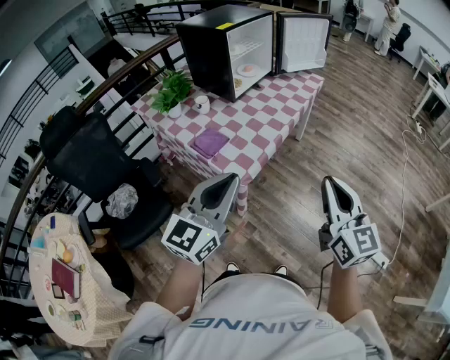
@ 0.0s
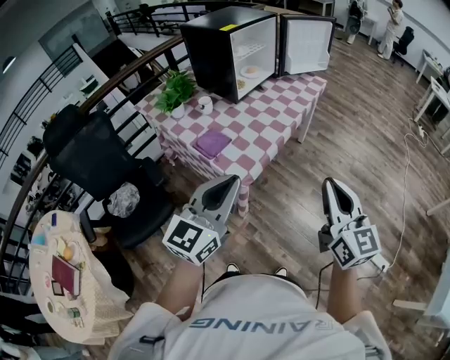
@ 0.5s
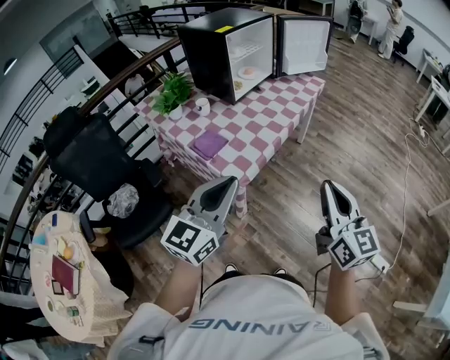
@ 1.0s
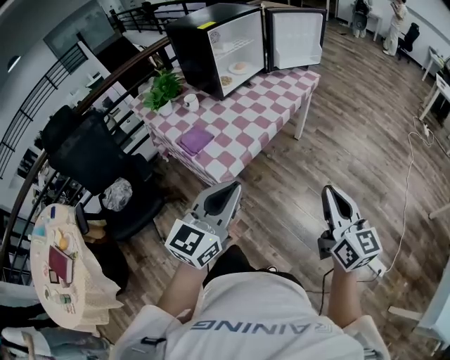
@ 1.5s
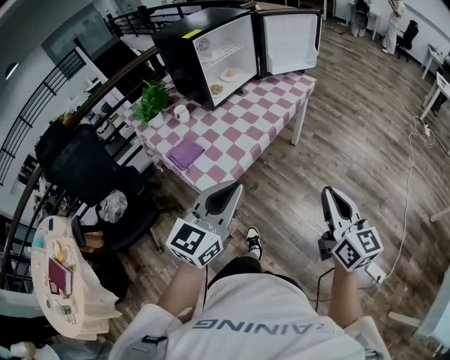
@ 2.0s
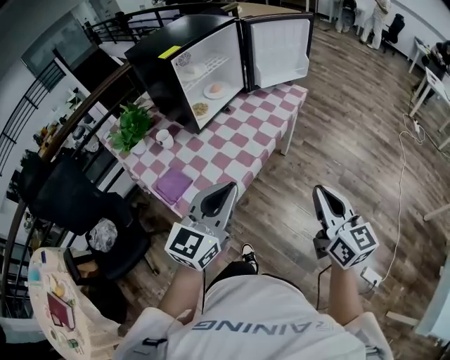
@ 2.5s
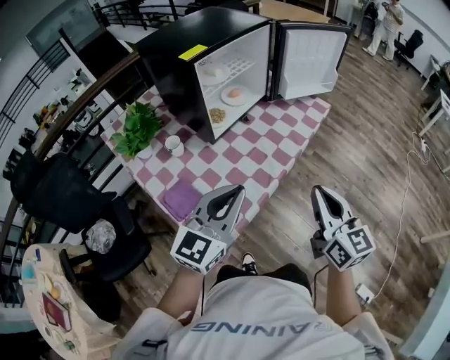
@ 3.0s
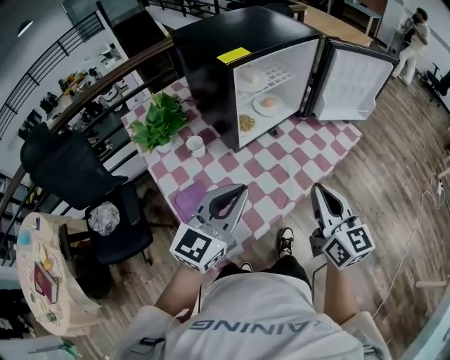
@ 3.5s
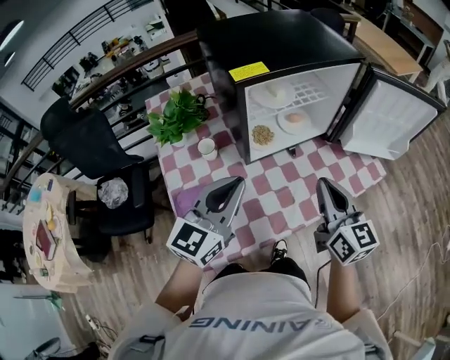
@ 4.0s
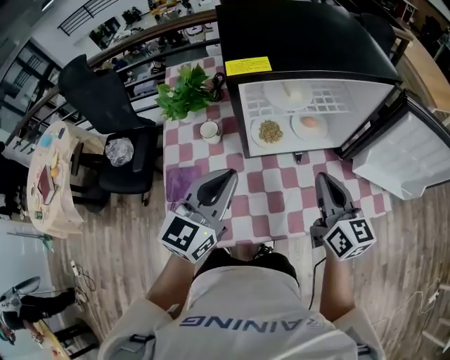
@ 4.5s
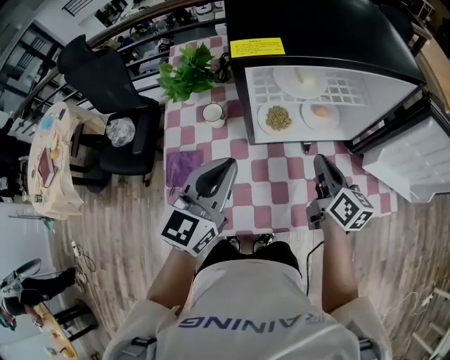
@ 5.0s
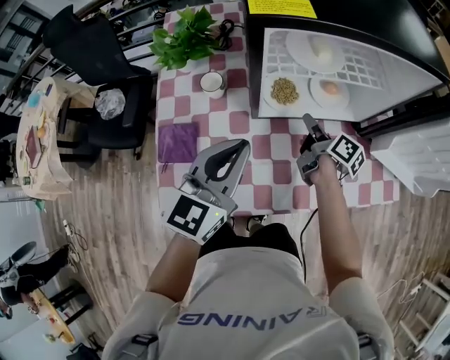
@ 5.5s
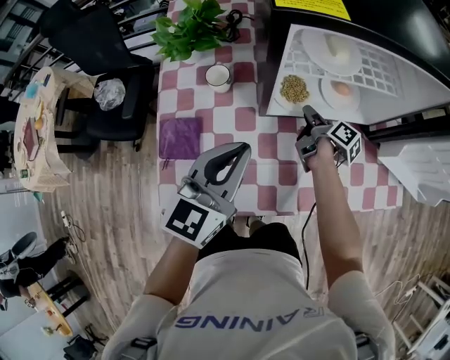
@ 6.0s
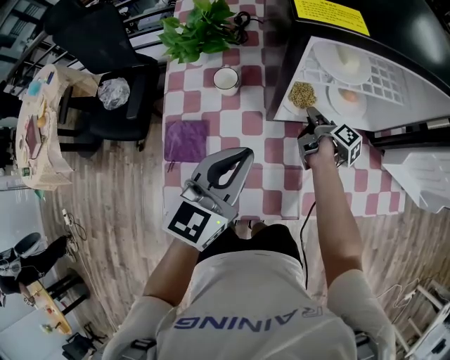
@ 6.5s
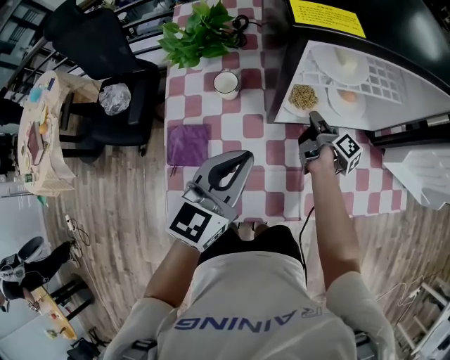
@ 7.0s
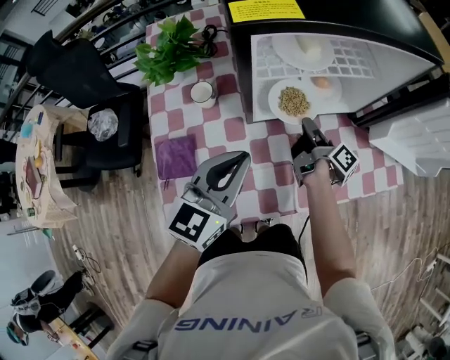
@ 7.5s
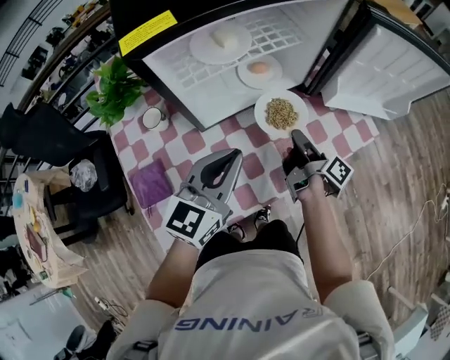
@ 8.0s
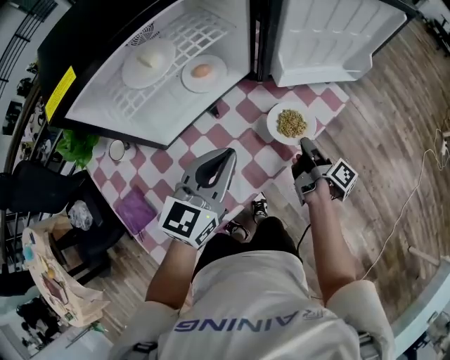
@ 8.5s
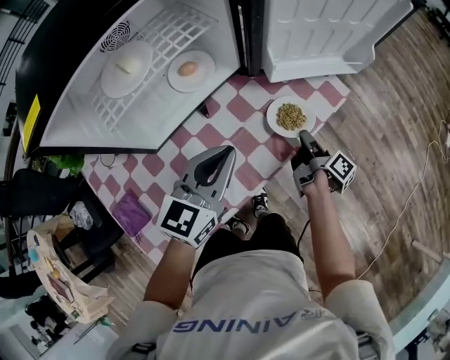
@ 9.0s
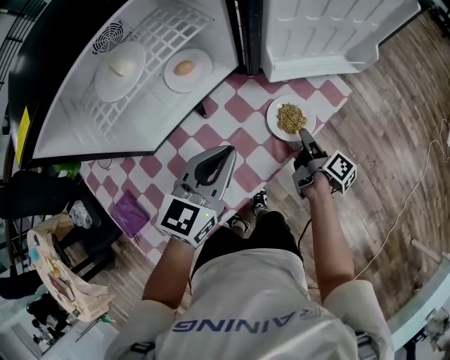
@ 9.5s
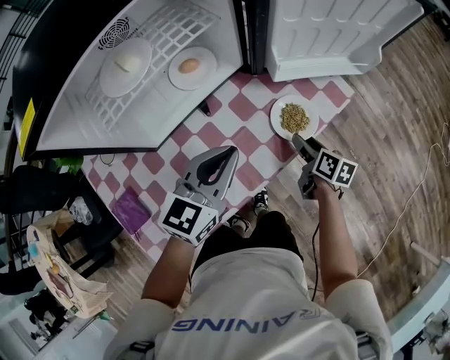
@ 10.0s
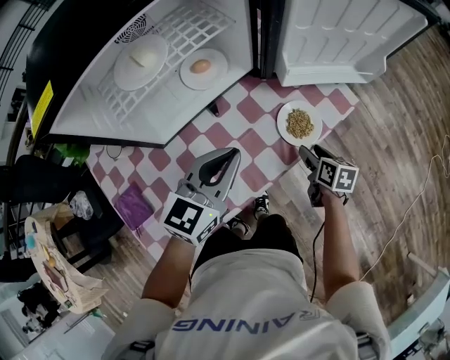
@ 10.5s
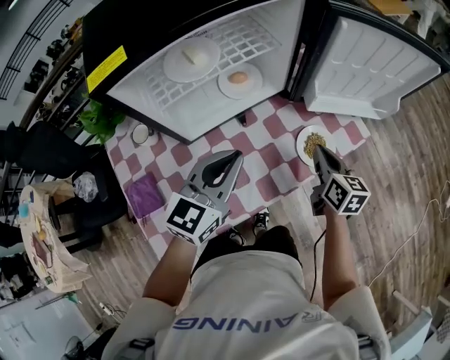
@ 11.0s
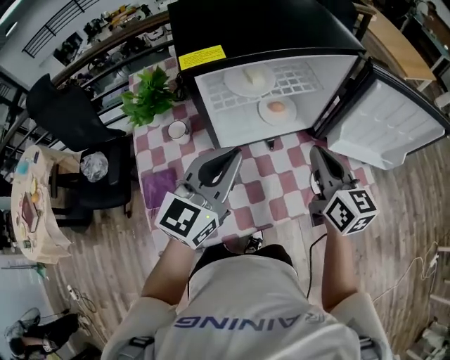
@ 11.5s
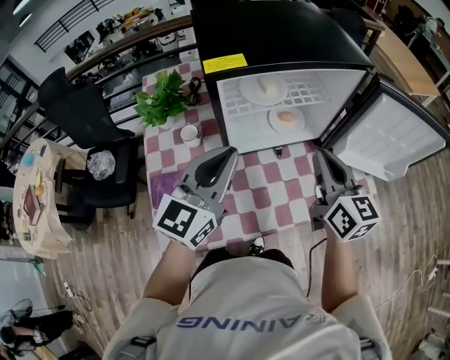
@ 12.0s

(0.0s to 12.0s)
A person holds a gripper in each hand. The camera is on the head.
0.0s - 2.0s: The left gripper moves to the right and forward, some 15 cm, while the right gripper goes about 20 cm to the right, forward and downward.
2.0s - 4.0s: The pair of grippers is taken approximately 50 cm. The left gripper changes its angle by approximately 30 degrees; the right gripper rotates approximately 30 degrees.
4.0s - 6.0s: The right gripper is displaced downward and forward by roughly 35 cm, and twists about 60 degrees clockwise, seen from behind. Meanwhile the left gripper travels downward and forward by about 10 cm, and rotates roughly 20 degrees.
6.0s - 8.0s: The left gripper changes place by about 10 cm, and rotates some 30 degrees; the right gripper shifts by some 20 cm, and turns by about 30 degrees.
8.0s - 10.0s: The right gripper is displaced to the right and downward by about 20 cm, rotates roughly 40 degrees, and opens its fingers. Meanwhile the left gripper travels to the right, forward and downward by roughly 15 cm.
10.0s - 12.0s: The left gripper travels to the left and upward by about 25 cm, and rotates some 40 degrees. Meanwhile the right gripper moves upward and to the left, approximately 40 cm, tips its fingers upward by roughly 30 degrees, and closes its fingers.

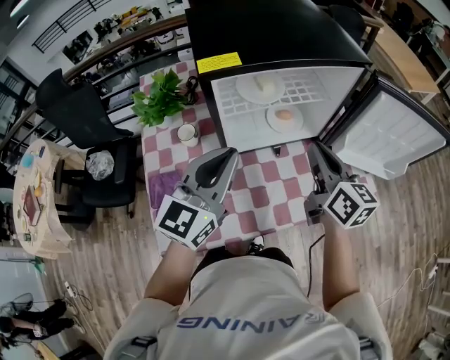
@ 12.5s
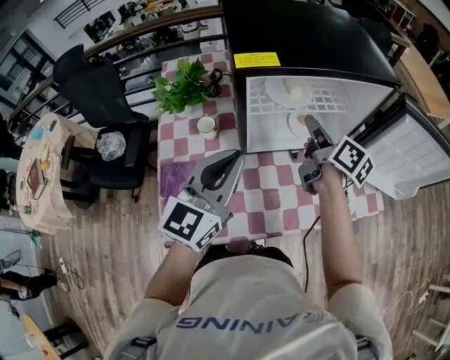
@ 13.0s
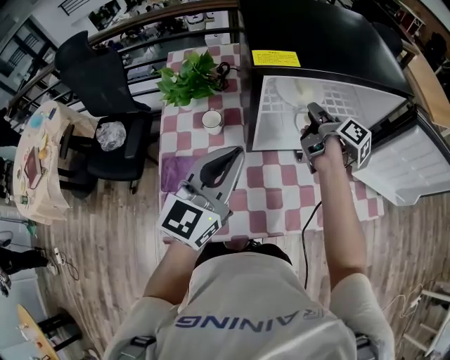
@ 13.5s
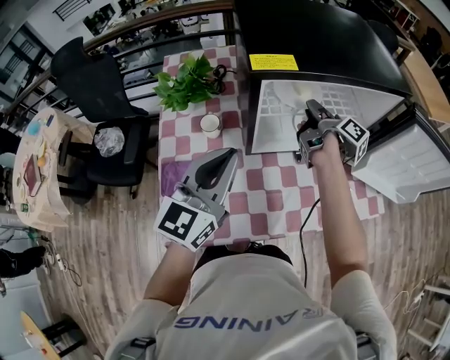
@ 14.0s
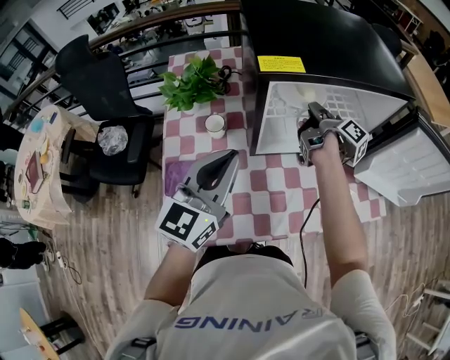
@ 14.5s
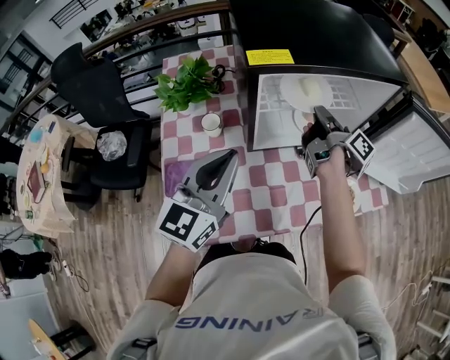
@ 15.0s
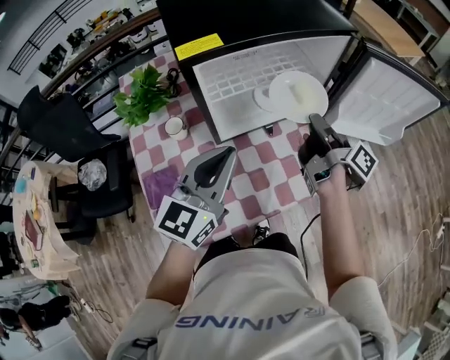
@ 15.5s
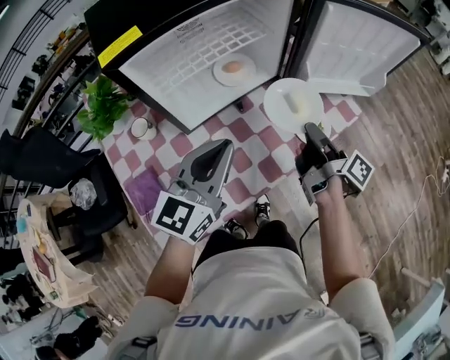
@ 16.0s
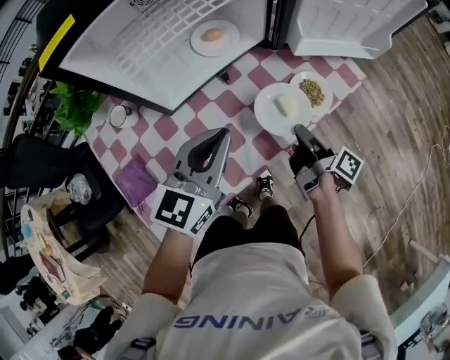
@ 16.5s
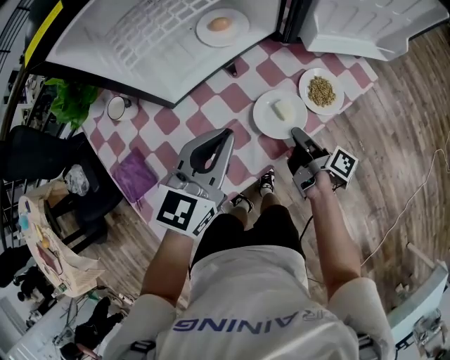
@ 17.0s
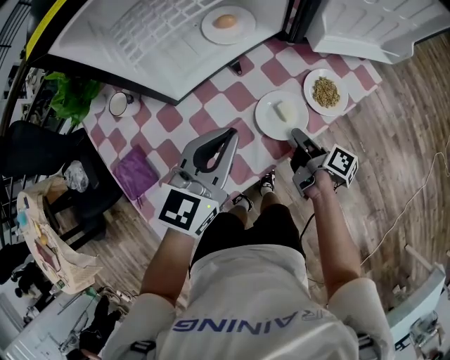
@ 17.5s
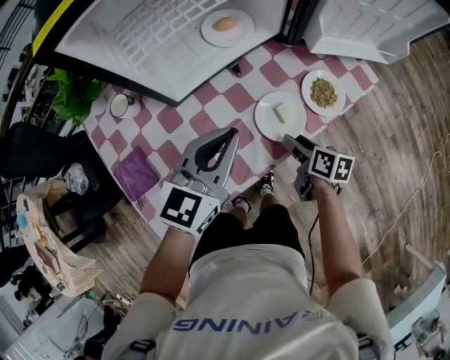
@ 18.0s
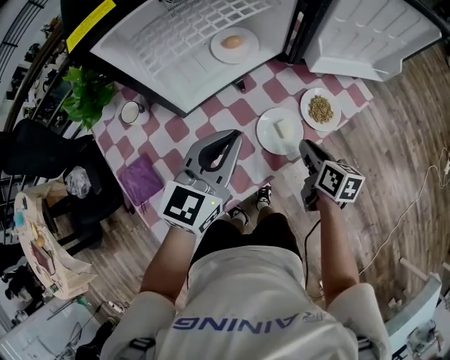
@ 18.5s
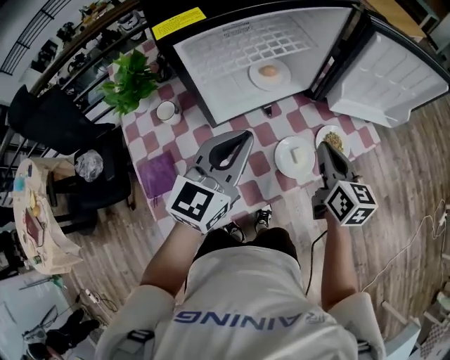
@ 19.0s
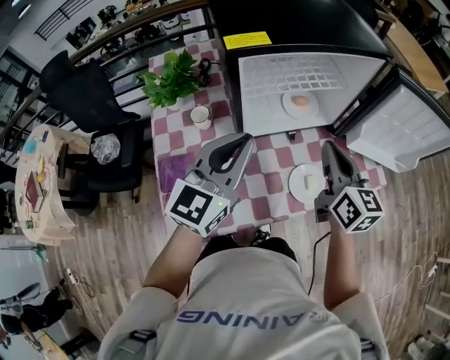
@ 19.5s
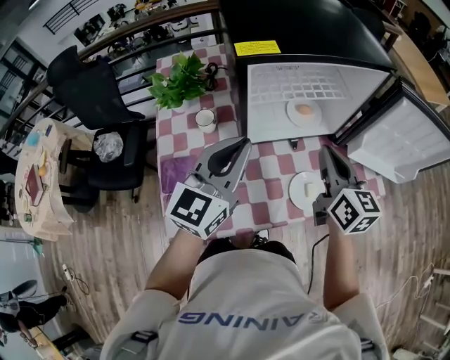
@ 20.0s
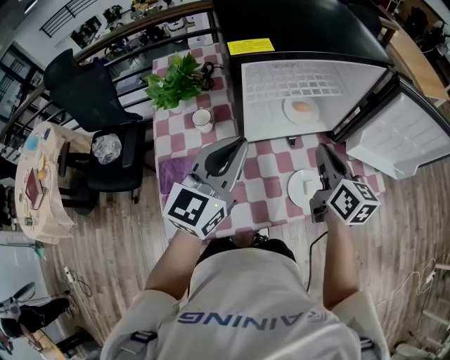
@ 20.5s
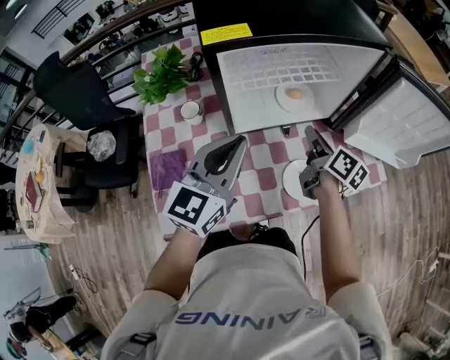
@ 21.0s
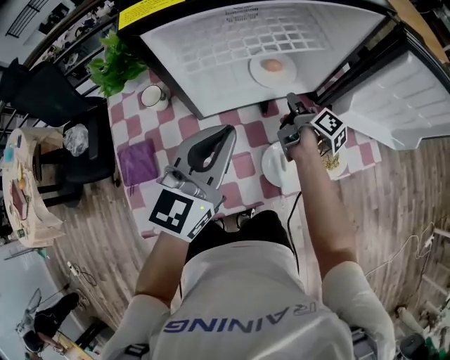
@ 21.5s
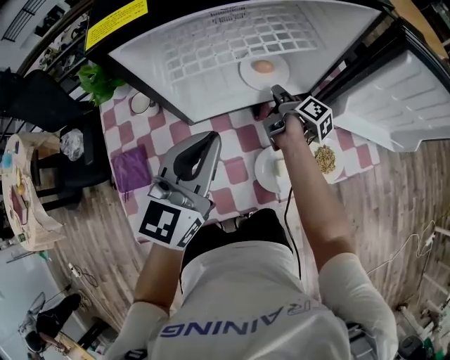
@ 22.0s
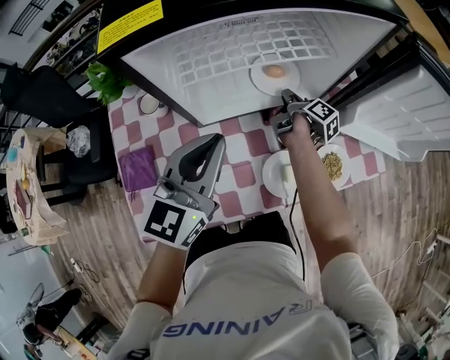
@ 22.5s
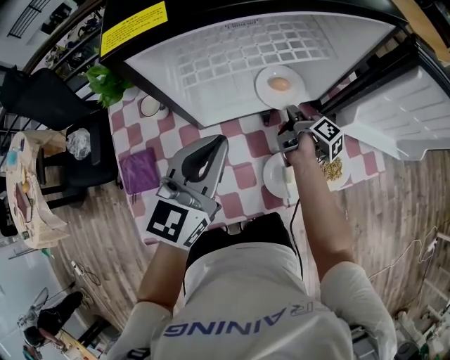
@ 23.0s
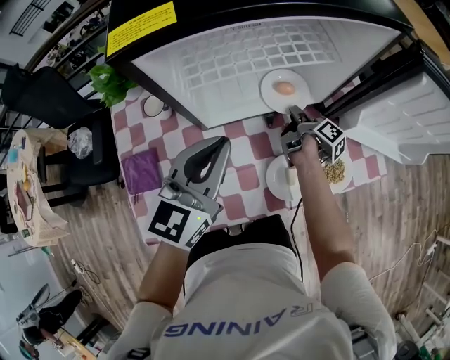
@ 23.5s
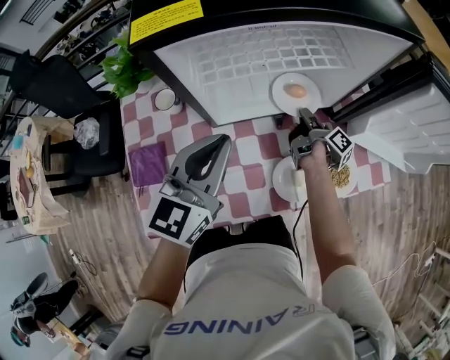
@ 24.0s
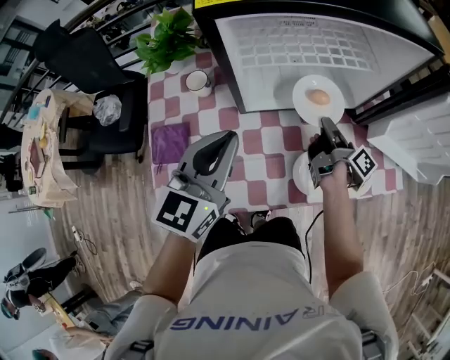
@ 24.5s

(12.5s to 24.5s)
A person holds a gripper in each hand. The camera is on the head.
12.5s - 14.5s: The left gripper is displaced to the left by approximately 10 cm, while the right gripper goes about 20 cm forward, to the left and downward, and rolls clockwise, seen from behind, by roughly 60 degrees.
14.5s - 16.5s: The right gripper shifts roughly 40 cm backward, to the right and downward. Meanwhile the left gripper travels to the right and downward by some 25 cm, and turns by approximately 30 degrees.
16.5s - 18.5s: The right gripper goes downward and returns, roughly 10 cm each way, rolls counterclockwise, seen from behind, by approximately 50 degrees, and opens, then closes once more.
18.5s - 20.5s: The left gripper shifts roughly 15 cm upward and to the left, and rotates approximately 30 degrees; the right gripper travels upward, to the left and forward by approximately 25 cm, and swivels approximately 30 degrees.
20.5s - 22.5s: The left gripper moves downward, to the right and forward, some 10 cm. The right gripper moves downward and forward, approximately 30 cm, and rotates around the line of its fingers by approximately 60 degrees, clockwise from behind.
22.5s - 24.5s: The right gripper goes about 10 cm backward and upward. Meanwhile the left gripper travels to the left by approximately 5 cm.

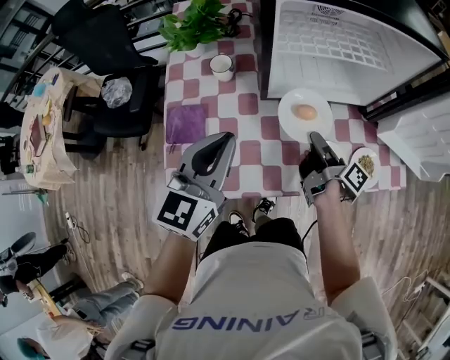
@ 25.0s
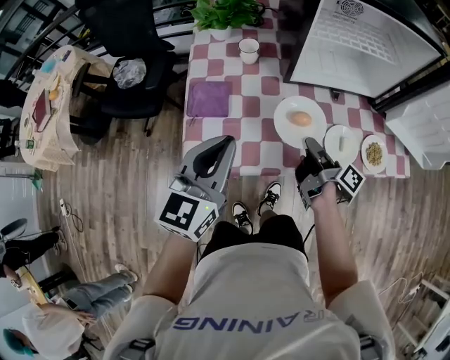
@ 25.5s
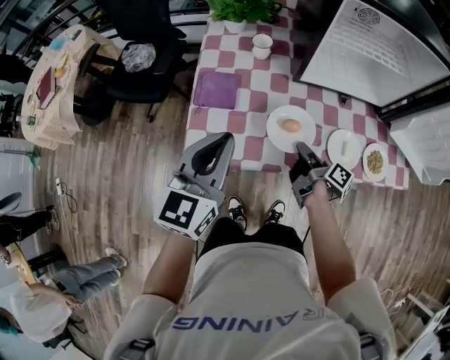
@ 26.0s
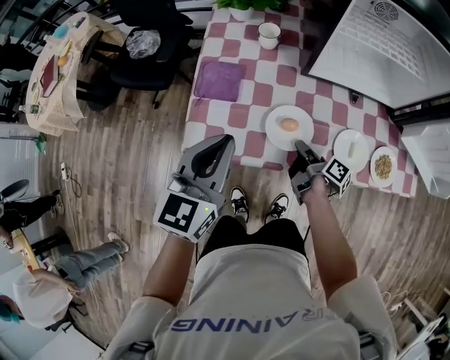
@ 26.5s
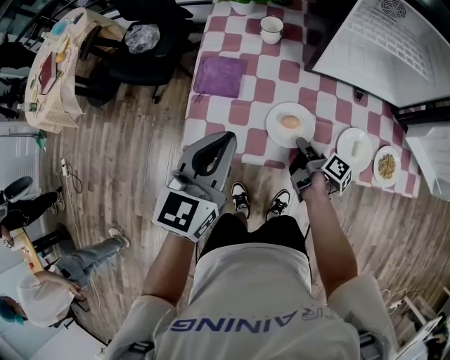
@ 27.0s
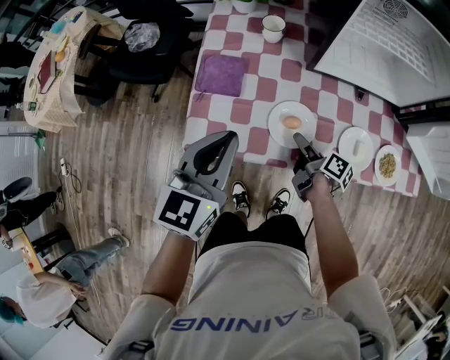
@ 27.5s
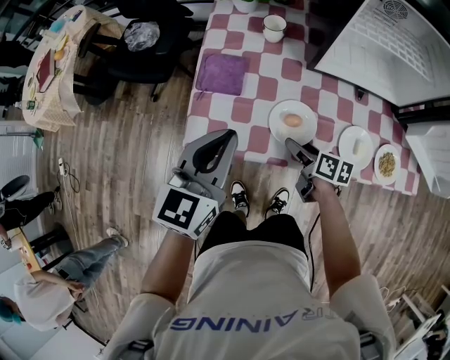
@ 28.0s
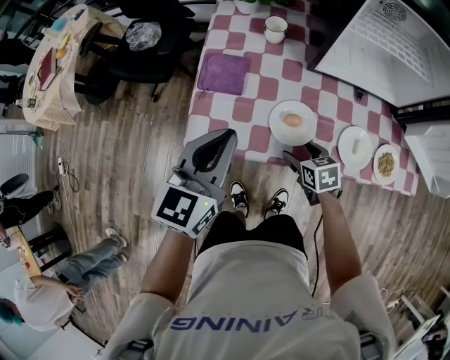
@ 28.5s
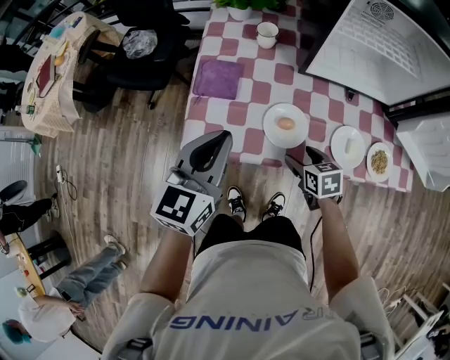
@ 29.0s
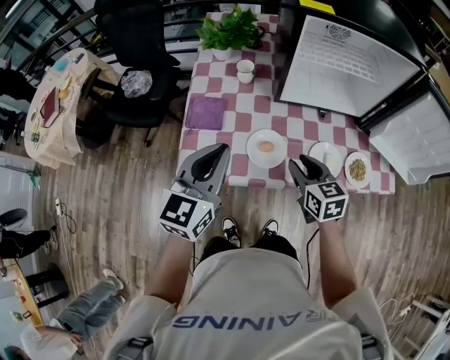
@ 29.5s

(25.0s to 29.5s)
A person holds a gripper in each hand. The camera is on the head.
25.0s - 27.0s: The right gripper shifts approximately 20 cm to the left, downward and backward, and rotates about 20 degrees. The left gripper shifts roughly 15 cm backward and to the left.
27.0s - 29.5s: The left gripper is displaced upward by about 5 cm. The right gripper goes some 15 cm upward, rotates around the line of its fingers by roughly 80 degrees, counterclockwise from behind, and opens its fingers.
